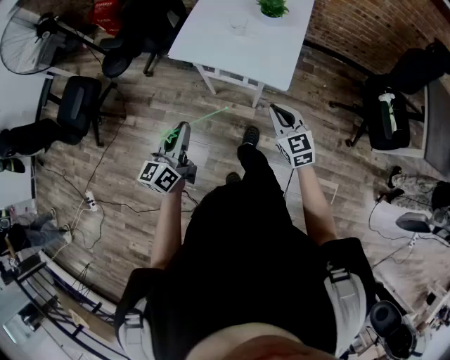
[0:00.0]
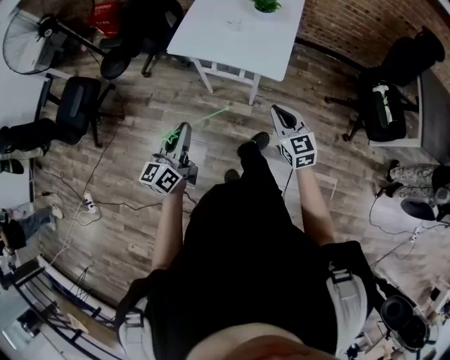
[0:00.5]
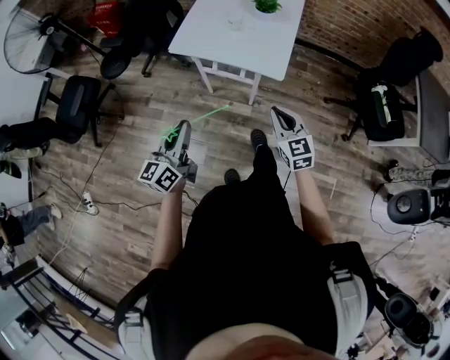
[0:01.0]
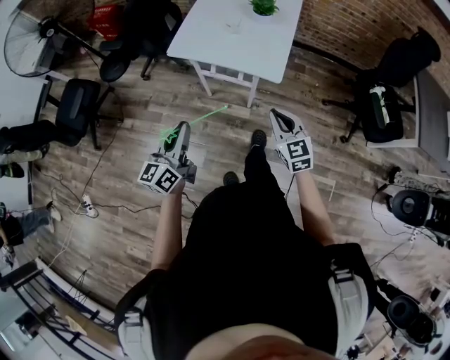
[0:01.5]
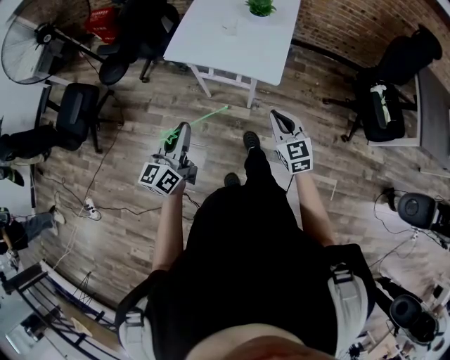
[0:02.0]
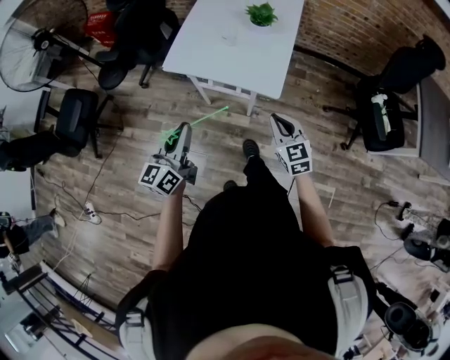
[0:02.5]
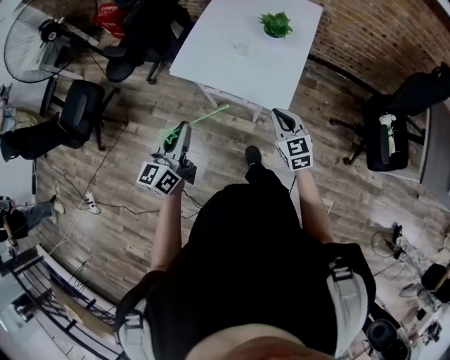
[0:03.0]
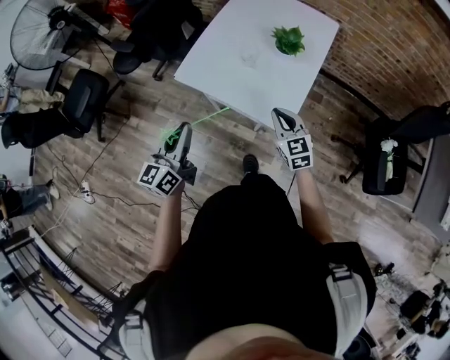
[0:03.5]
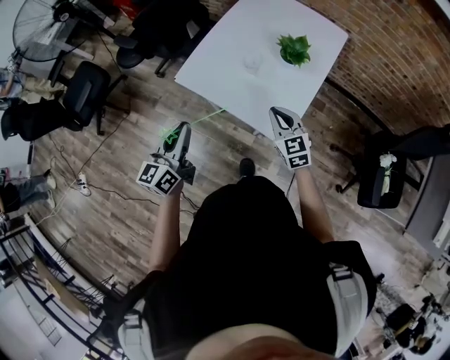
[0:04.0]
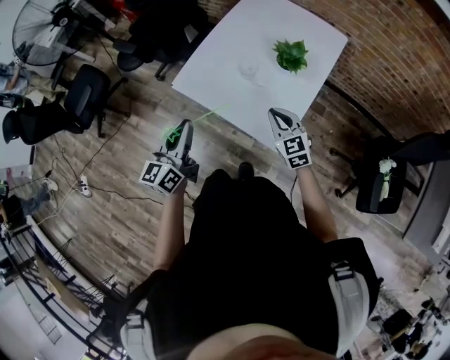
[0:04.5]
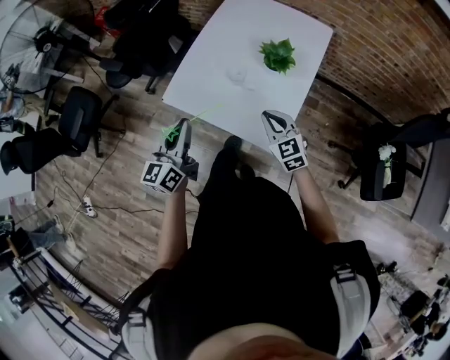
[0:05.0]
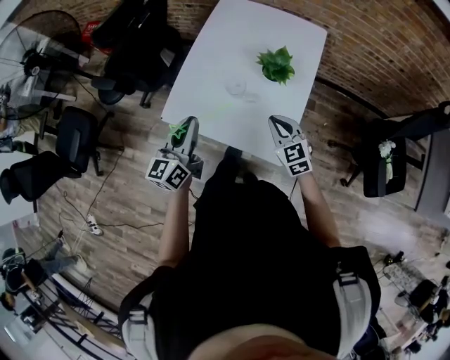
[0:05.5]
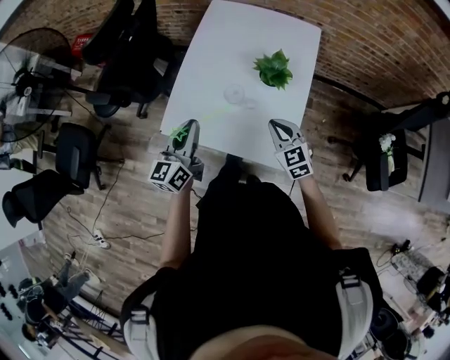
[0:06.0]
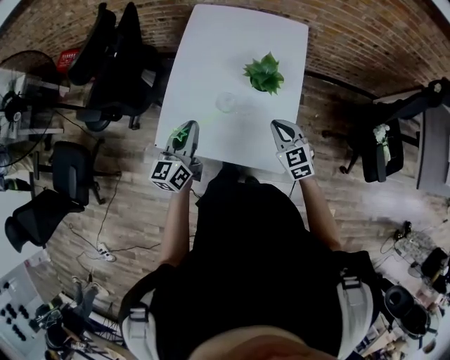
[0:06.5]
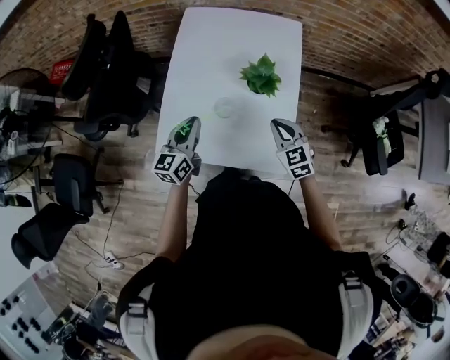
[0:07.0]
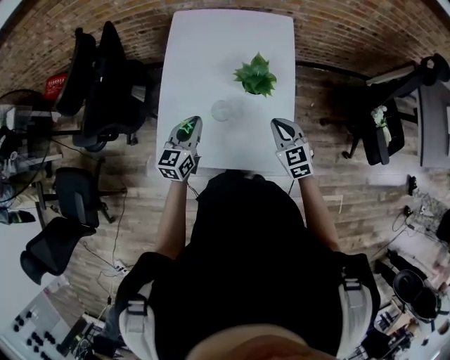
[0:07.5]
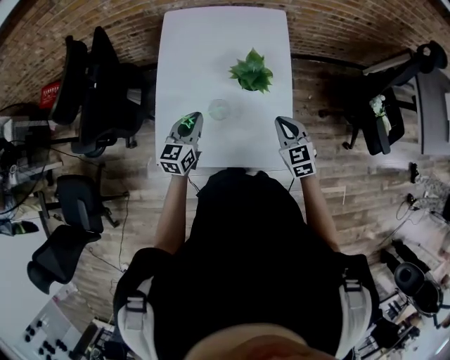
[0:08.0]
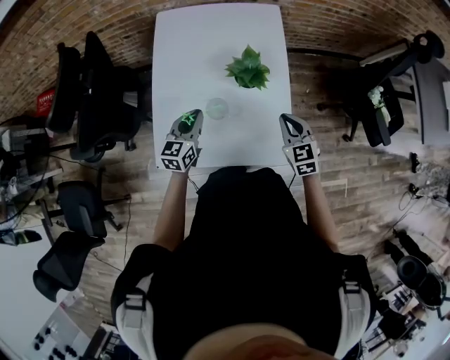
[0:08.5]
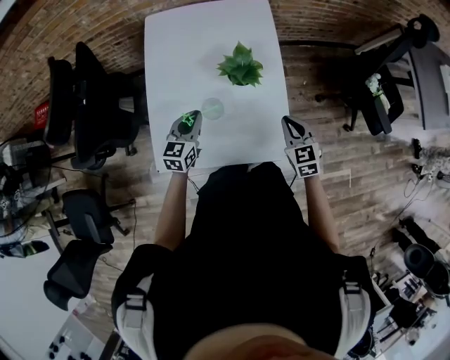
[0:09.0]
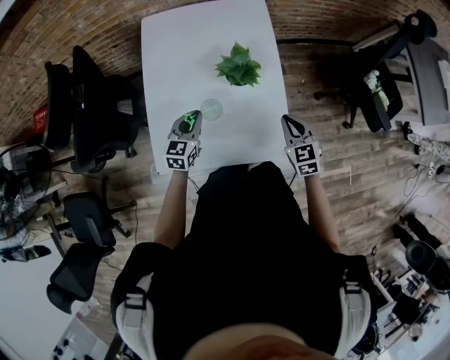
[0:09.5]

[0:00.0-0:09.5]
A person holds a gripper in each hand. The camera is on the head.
0:00.0 to 0:02.0: The left gripper shifts by some 5 cm. The right gripper goes approximately 5 cm backward.
0:02.0 to 0:04.0: The two grippers go about 25 cm forward.
0:04.0 to 0:05.5: The left gripper travels forward by about 15 cm, while the right gripper heads forward, covering approximately 10 cm.
0:05.5 to 0:07.5: The left gripper goes roughly 20 cm forward and downward, and turns by about 30 degrees, while the right gripper goes about 5 cm forward.
0:07.5 to 0:09.5: The right gripper travels to the right by some 5 cm, while the left gripper travels downward by about 5 cm.

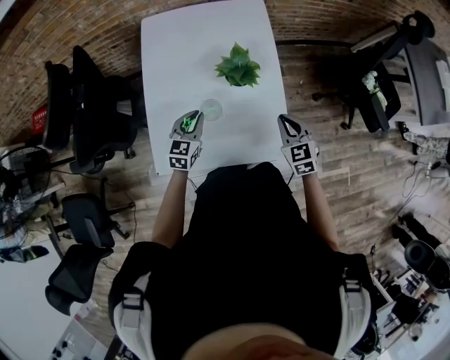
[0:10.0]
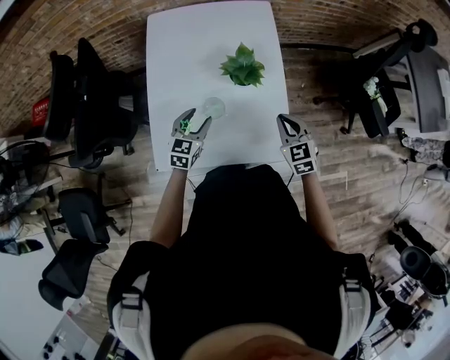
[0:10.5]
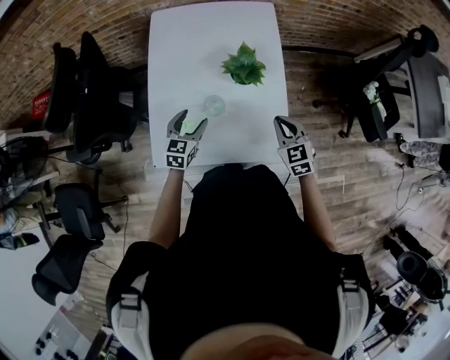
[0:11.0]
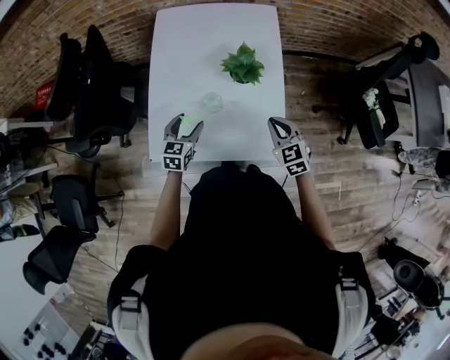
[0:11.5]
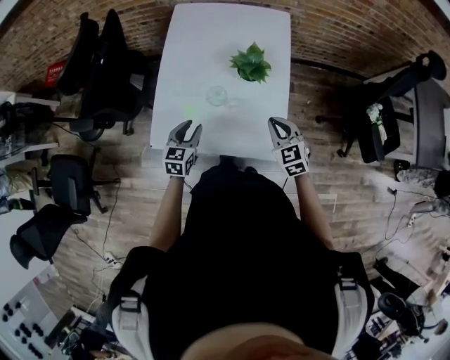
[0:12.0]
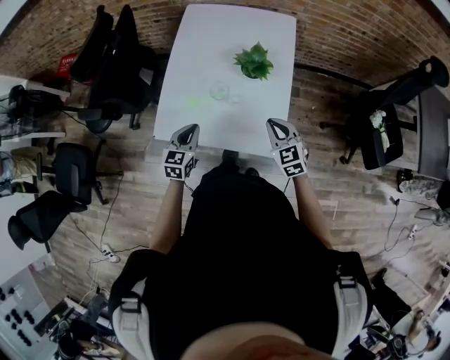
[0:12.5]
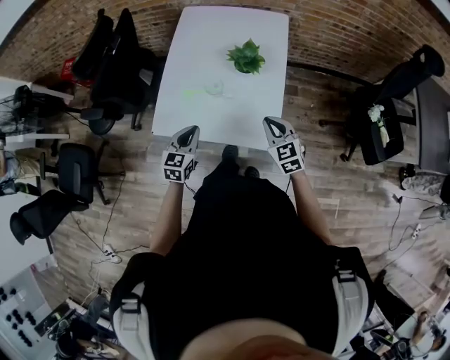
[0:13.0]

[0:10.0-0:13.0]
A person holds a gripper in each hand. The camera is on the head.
0:10.0 to 0:11.5: The left gripper shifts some 5 cm backward, and opens its fingers.
0:11.5 to 0:13.0: The left gripper moves backward and upward, some 15 cm, and closes up; the right gripper moves backward, some 10 cm.

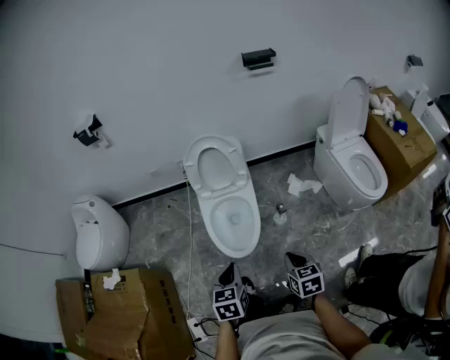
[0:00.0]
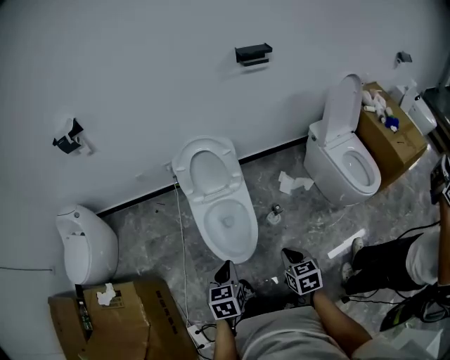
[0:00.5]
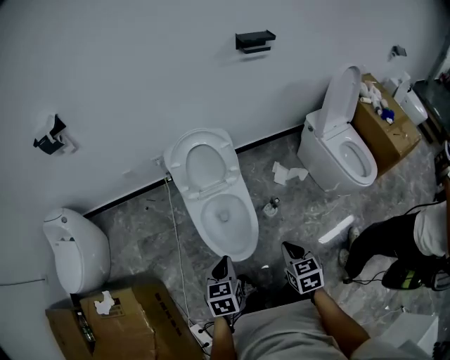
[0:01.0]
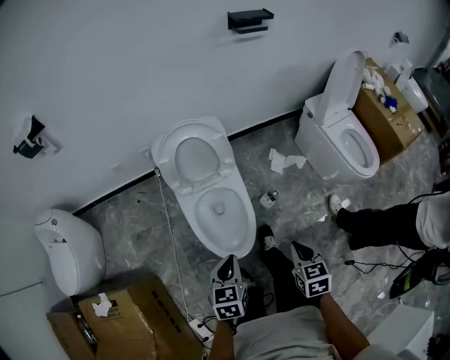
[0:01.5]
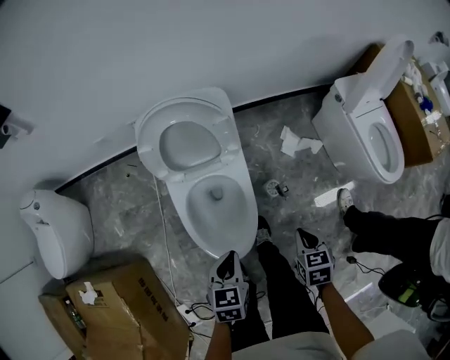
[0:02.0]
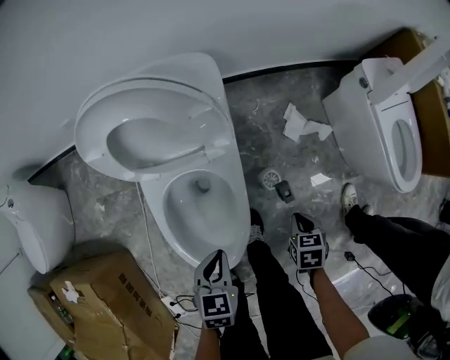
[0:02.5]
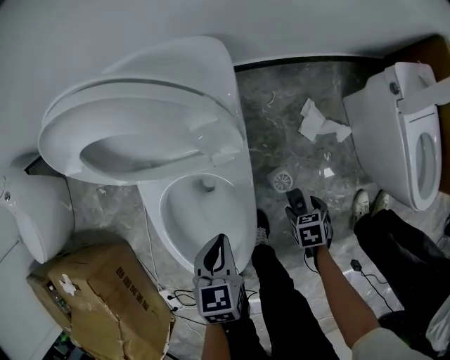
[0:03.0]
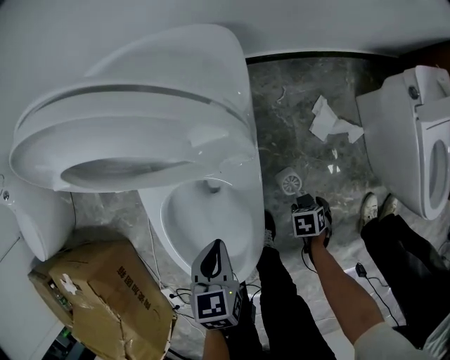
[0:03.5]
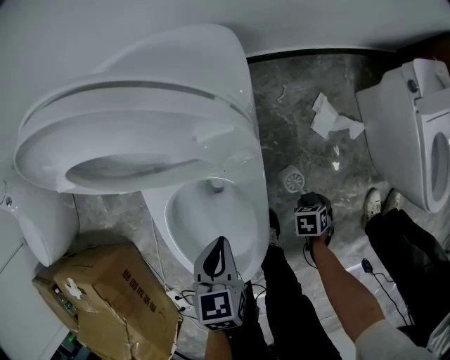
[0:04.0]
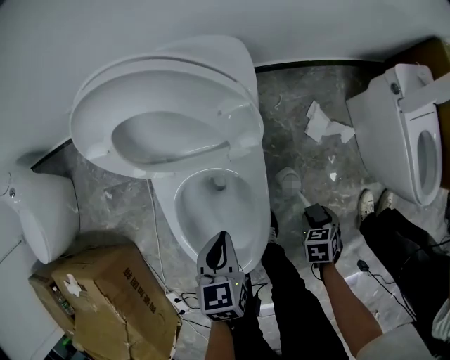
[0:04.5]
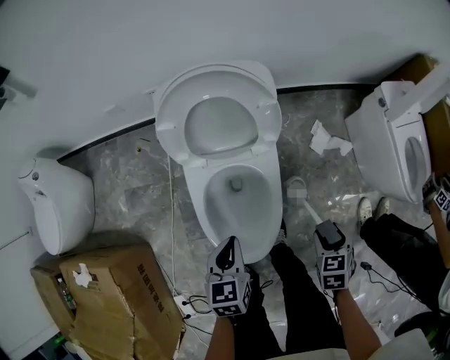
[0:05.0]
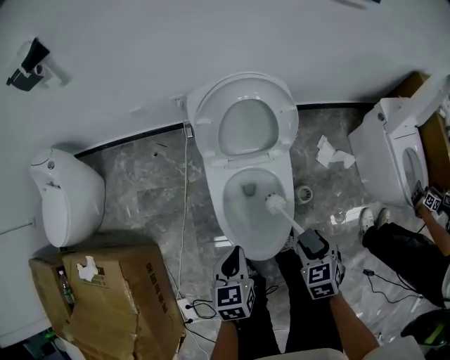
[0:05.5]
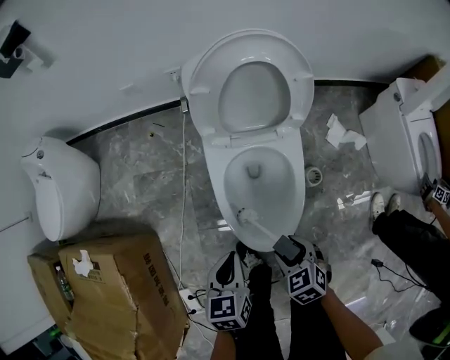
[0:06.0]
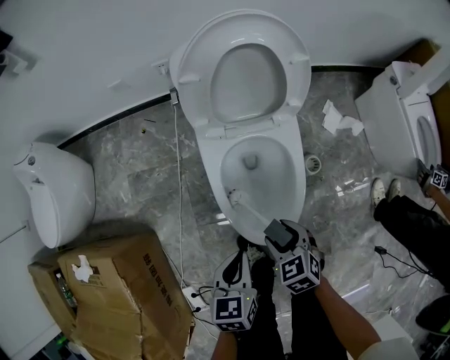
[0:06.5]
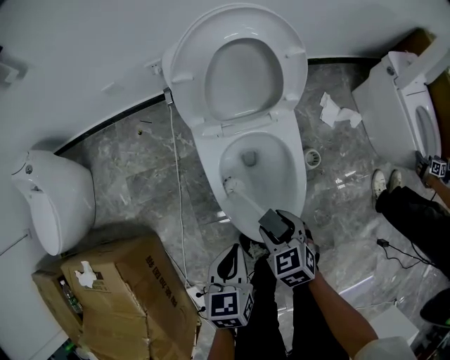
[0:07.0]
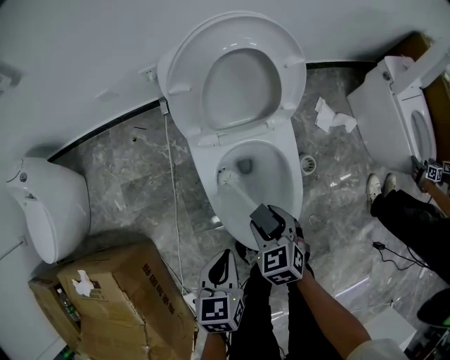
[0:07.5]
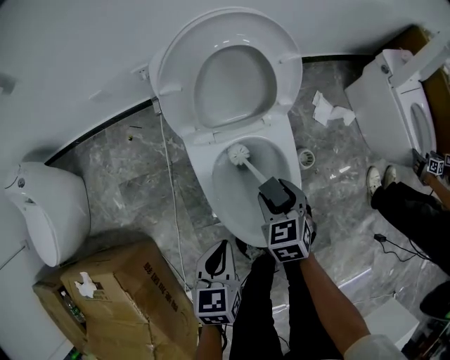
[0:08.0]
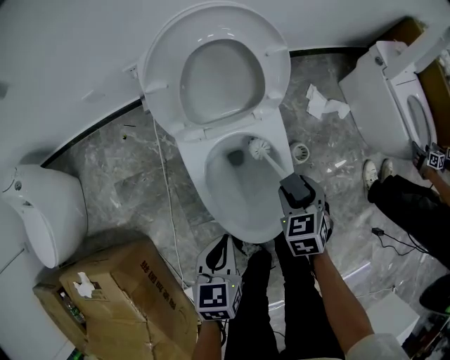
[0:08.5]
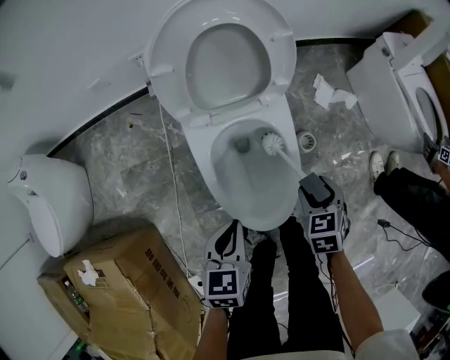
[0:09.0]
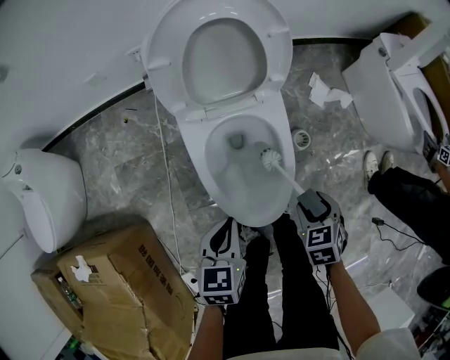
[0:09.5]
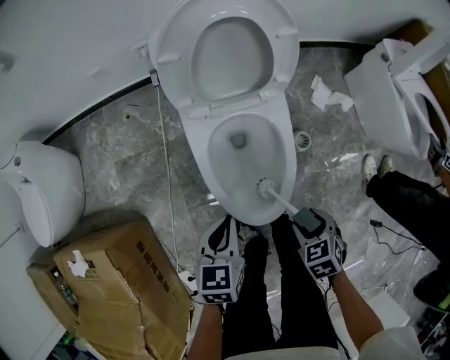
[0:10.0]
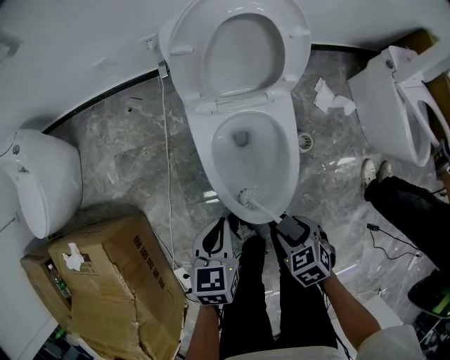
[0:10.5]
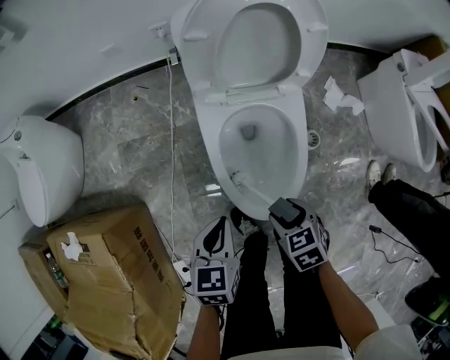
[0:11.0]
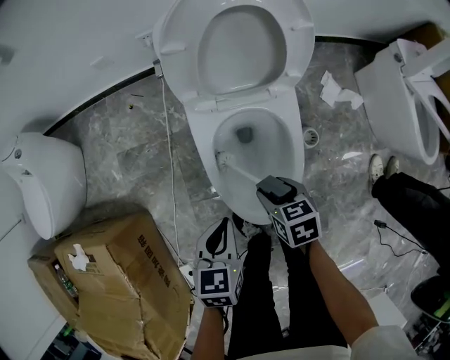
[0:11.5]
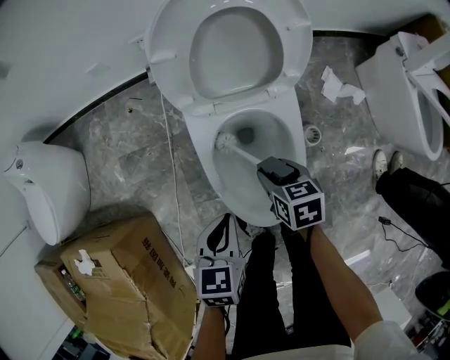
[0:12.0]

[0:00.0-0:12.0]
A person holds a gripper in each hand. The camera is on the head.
0:00.0 to 0:02.0: Both grippers travel together forward and downward, about 30 cm.
0:02.0 to 0:04.0: The right gripper shifts approximately 40 cm downward, changes its angle by roughly 30 degrees, and opens; the left gripper shifts about 20 cm downward.
0:04.0 to 0:06.0: The right gripper changes place by some 40 cm, and turns by approximately 50 degrees. The left gripper shifts by some 25 cm.
0:06.0 to 0:08.0: The left gripper moves some 5 cm. Meanwhile the right gripper heads forward, covering about 15 cm, and turns by approximately 30 degrees.
0:08.0 to 0:10.0: The right gripper travels backward and to the right by approximately 20 cm, and changes its angle by some 20 degrees.
0:10.0 to 0:12.0: The right gripper is displaced forward by roughly 20 cm, and turns by some 30 degrees.

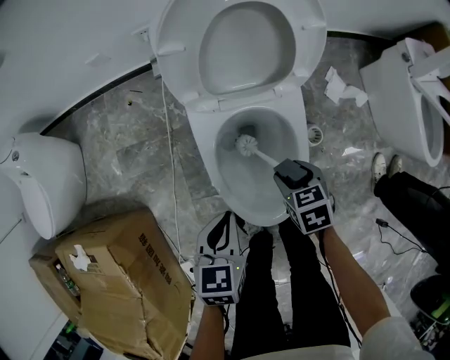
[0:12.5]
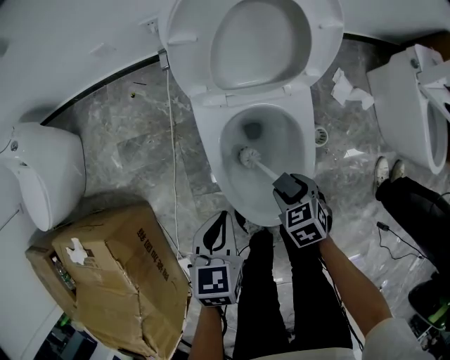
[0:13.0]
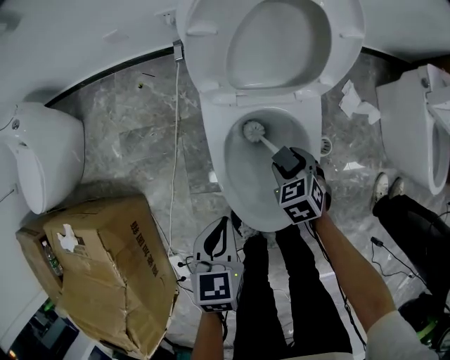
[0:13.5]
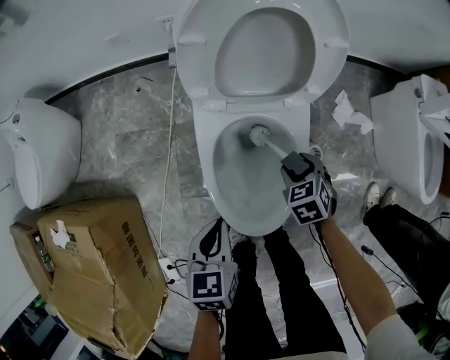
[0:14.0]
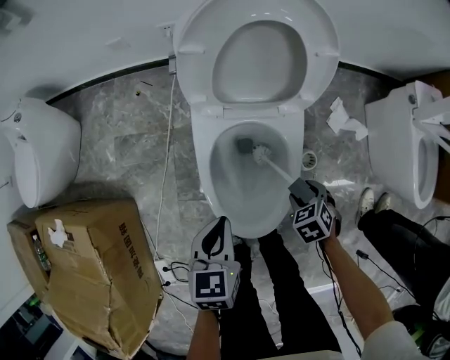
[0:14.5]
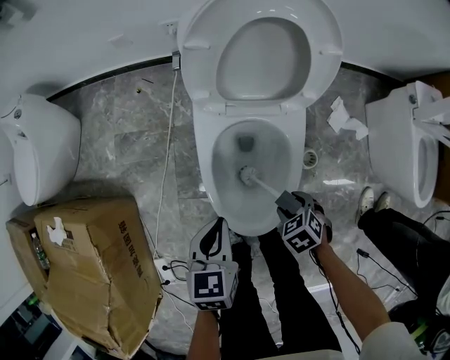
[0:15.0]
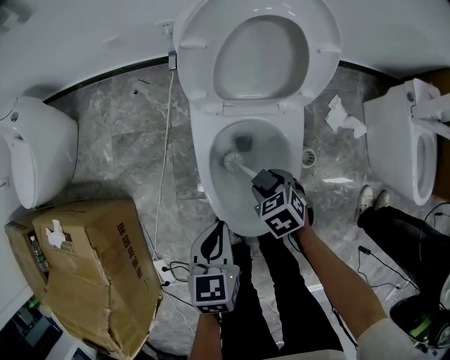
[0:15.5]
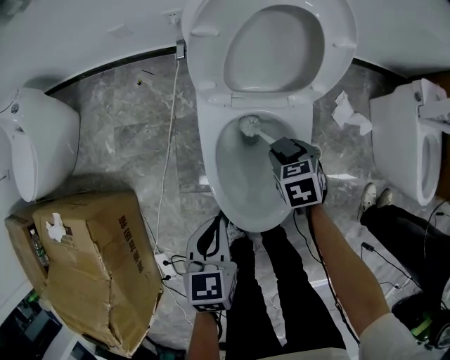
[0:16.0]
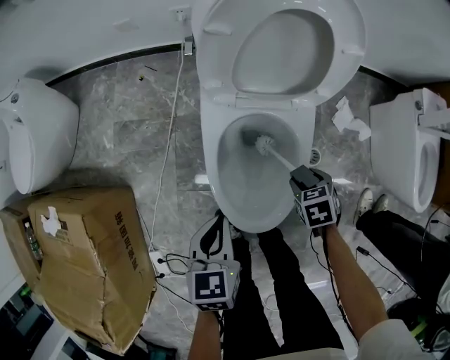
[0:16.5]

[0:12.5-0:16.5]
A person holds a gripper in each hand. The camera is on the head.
0:12.5 to 0:14.5: The right gripper ends up roughly 10 cm from where it was, and changes its angle by some 30 degrees.
